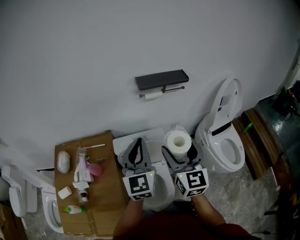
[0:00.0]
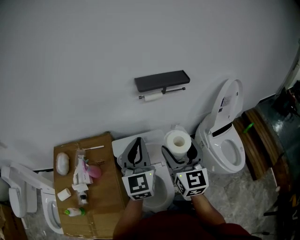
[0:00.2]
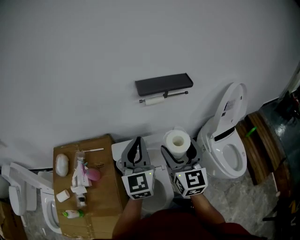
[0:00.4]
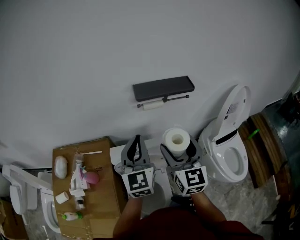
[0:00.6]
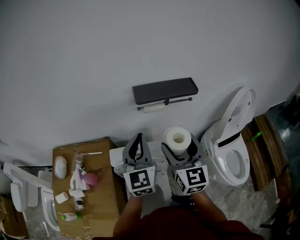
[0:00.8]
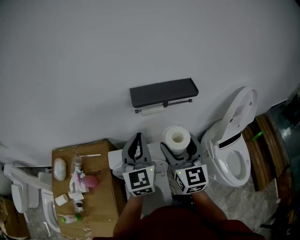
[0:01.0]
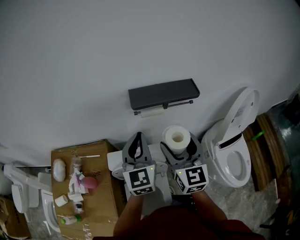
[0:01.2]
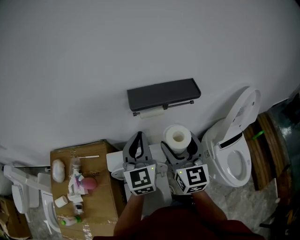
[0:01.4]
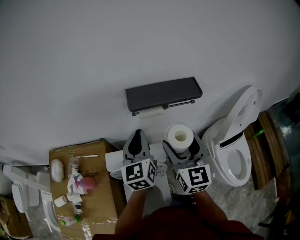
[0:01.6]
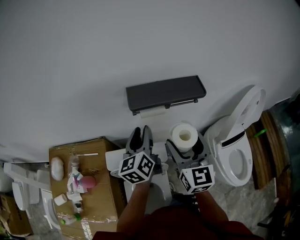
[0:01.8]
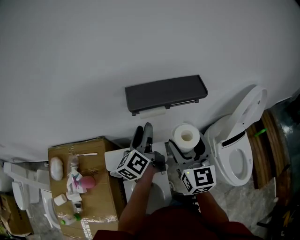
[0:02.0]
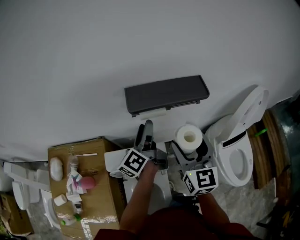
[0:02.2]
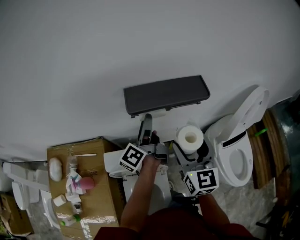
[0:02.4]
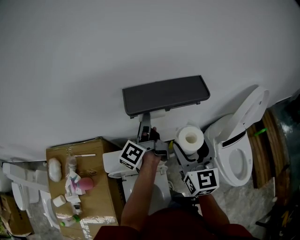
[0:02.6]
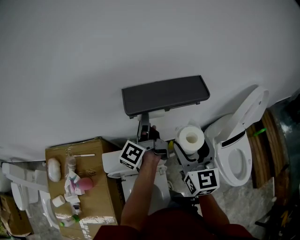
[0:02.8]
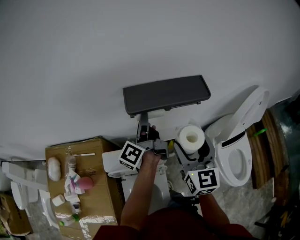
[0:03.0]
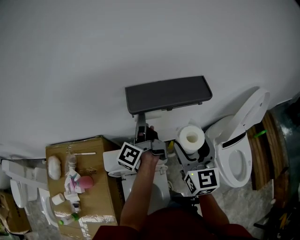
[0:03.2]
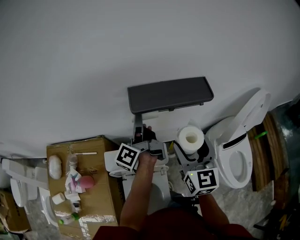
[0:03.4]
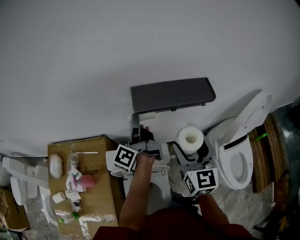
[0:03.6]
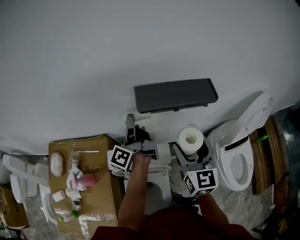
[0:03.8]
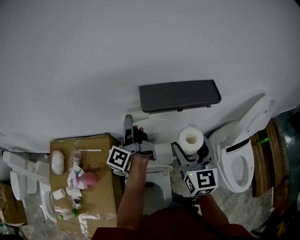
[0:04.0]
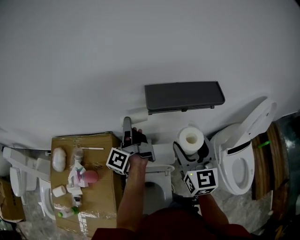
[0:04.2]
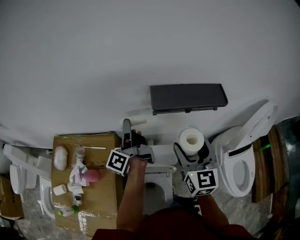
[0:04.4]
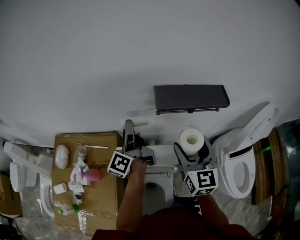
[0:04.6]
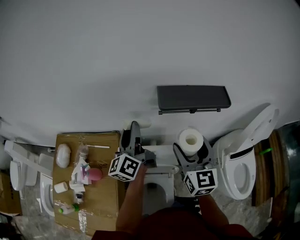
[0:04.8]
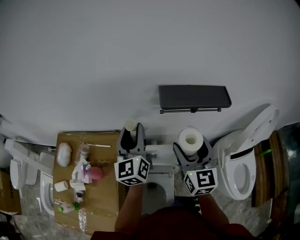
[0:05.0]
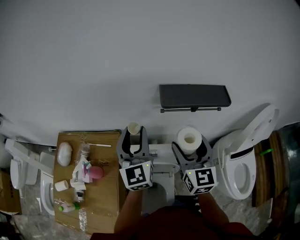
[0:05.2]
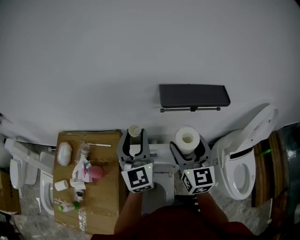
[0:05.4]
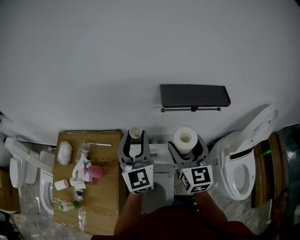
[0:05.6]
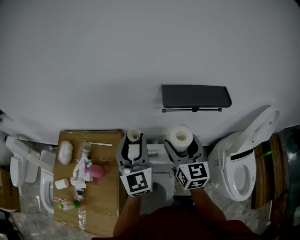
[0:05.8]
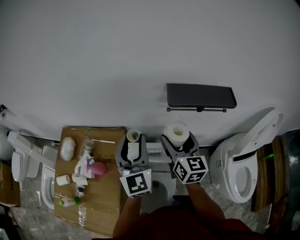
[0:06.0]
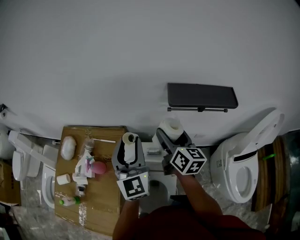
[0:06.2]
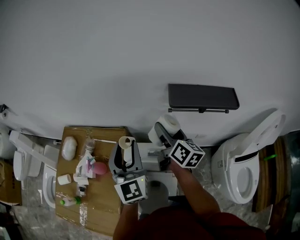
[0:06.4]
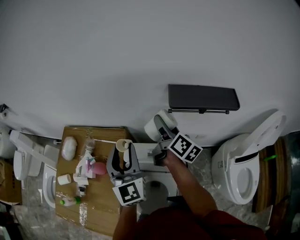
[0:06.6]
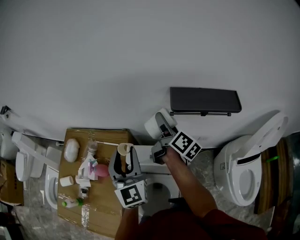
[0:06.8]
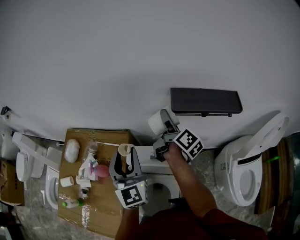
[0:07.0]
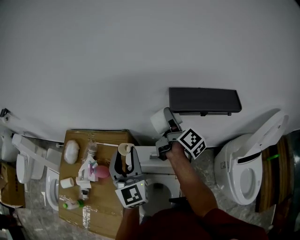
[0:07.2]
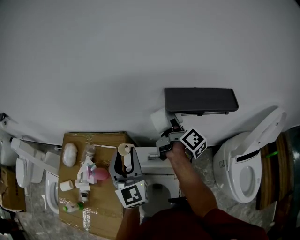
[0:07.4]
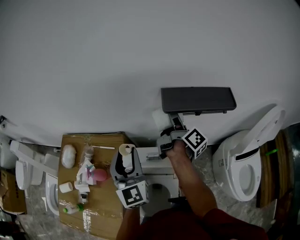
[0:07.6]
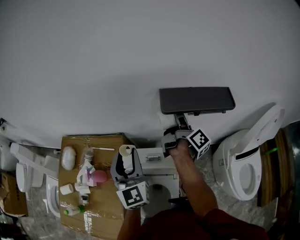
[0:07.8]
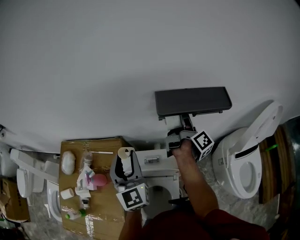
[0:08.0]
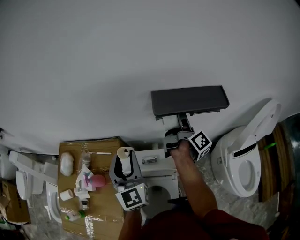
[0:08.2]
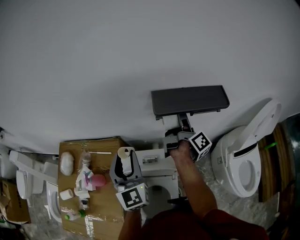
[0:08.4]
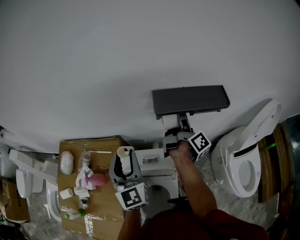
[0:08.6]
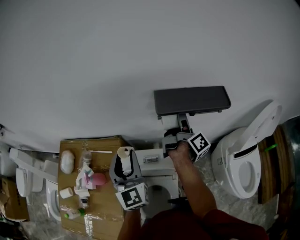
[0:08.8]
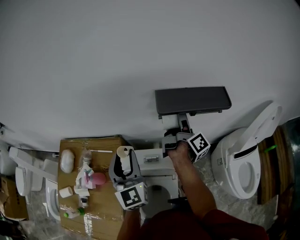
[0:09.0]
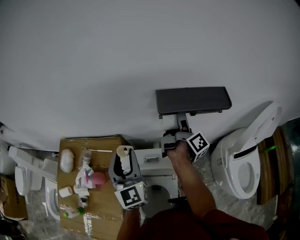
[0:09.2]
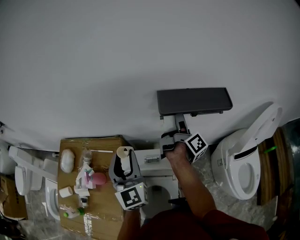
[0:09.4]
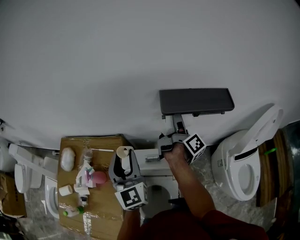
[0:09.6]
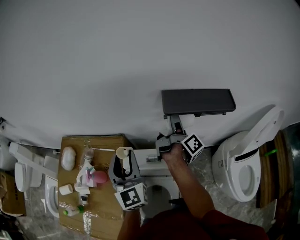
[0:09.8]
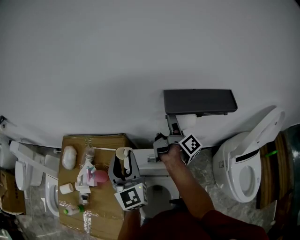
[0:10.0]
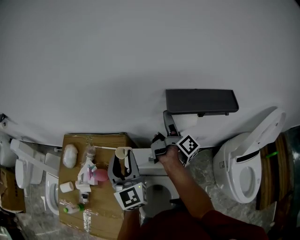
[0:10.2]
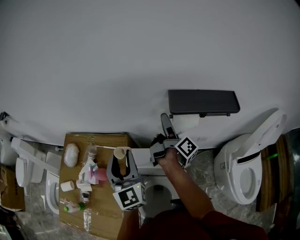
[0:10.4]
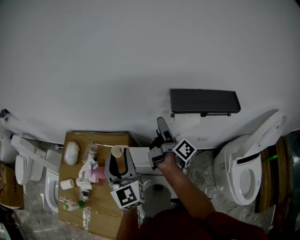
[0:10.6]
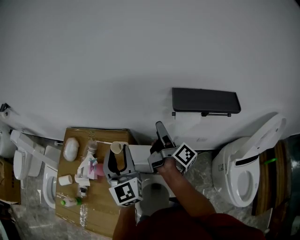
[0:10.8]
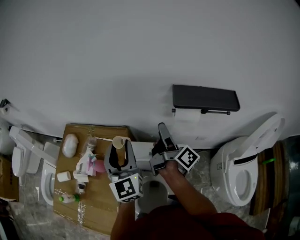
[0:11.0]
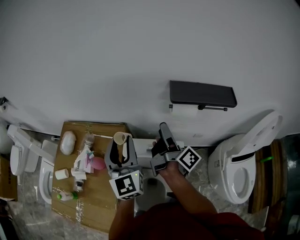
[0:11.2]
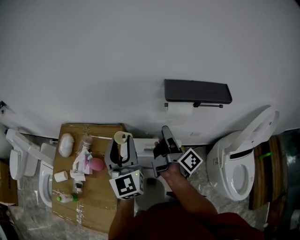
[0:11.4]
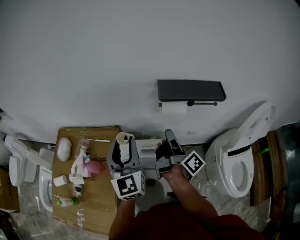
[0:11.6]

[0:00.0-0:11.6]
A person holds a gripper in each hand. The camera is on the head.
0:00.0 to 0:01.4: Both grippers travel together forward, some 20 cm.
0:01.4 to 0:02.8: The left gripper travels forward and downward by approximately 15 cm, rotates around the line of its fingers by roughly 80 degrees, counterclockwise from behind, and opens its fingers. The right gripper moves about 5 cm.
0:02.8 to 0:04.4: The left gripper heads to the left, covering some 15 cm. Meanwhile the right gripper heads to the left, covering about 5 cm.
0:04.4 to 0:05.8: The right gripper travels to the left by about 5 cm; the left gripper heads backward and upward, covering about 10 cm, and rolls clockwise, seen from behind, by roughly 80 degrees.
0:05.8 to 0:07.2: The left gripper shifts about 5 cm to the left. Meanwhile the right gripper heads forward, covering approximately 15 cm, and twists approximately 70 degrees clockwise, seen from behind.
0:07.2 to 0:08.8: The right gripper goes some 10 cm to the right, and changes its angle by approximately 20 degrees.
0:08.8 to 0:10.2: The right gripper goes roughly 10 cm to the left.
0:10.2 to 0:11.6: The left gripper moves approximately 5 cm; the right gripper travels backward by about 15 cm, and closes up.

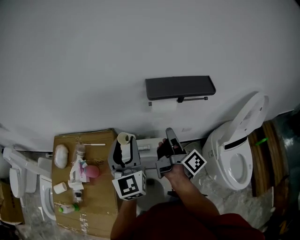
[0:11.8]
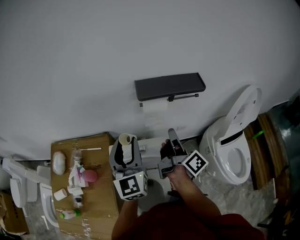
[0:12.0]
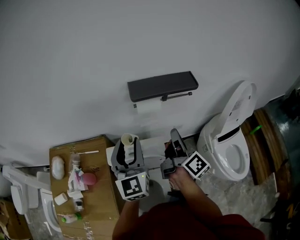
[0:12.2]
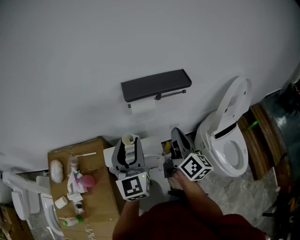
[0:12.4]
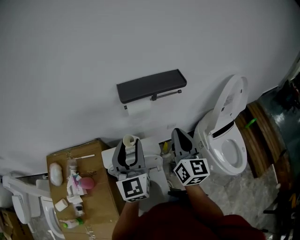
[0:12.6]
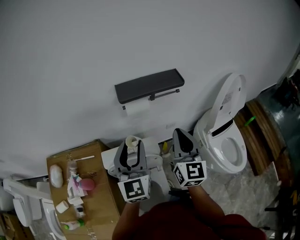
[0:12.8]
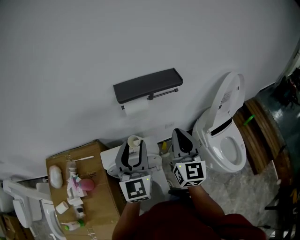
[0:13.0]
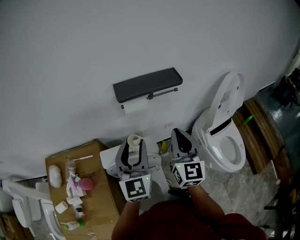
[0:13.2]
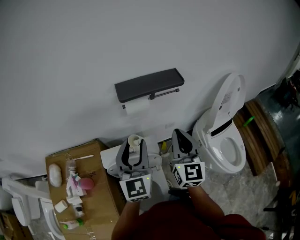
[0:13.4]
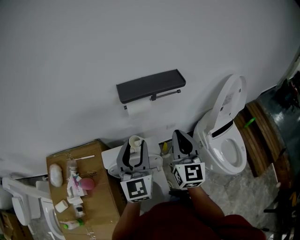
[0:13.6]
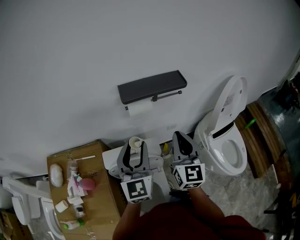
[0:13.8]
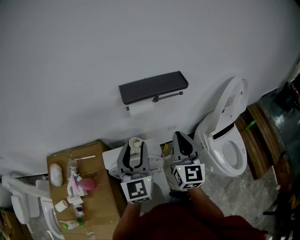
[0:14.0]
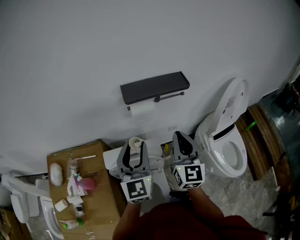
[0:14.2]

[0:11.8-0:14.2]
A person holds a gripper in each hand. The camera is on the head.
0:11.8 to 0:13.0: The left gripper shifts approximately 10 cm to the right. The right gripper is displaced to the right and backward by approximately 10 cm, and rolls counterclockwise, seen from behind, by about 80 degrees.
0:13.0 to 0:14.2: The grippers make only small movements.

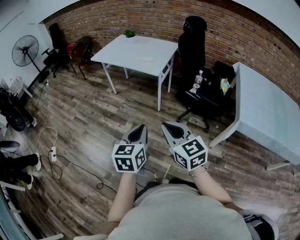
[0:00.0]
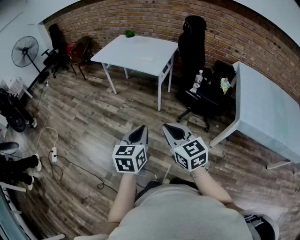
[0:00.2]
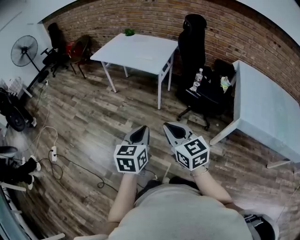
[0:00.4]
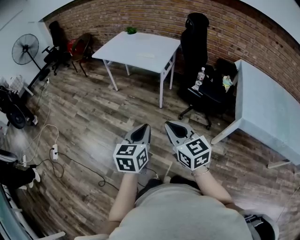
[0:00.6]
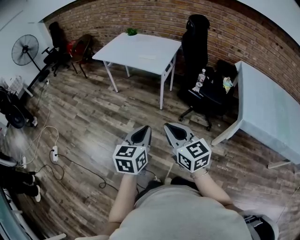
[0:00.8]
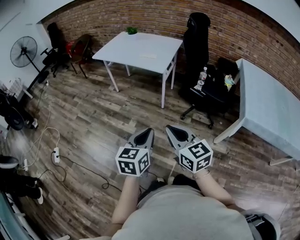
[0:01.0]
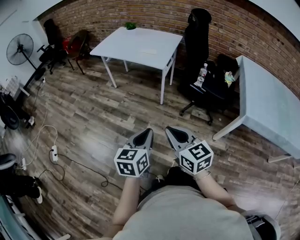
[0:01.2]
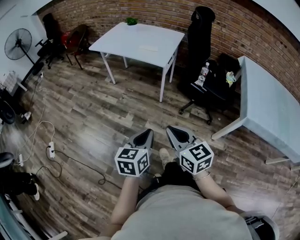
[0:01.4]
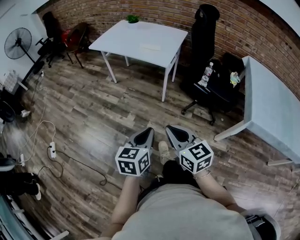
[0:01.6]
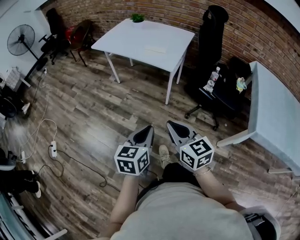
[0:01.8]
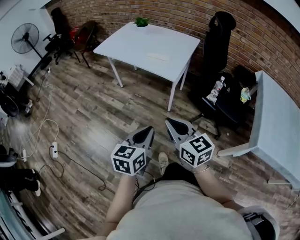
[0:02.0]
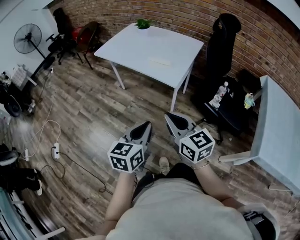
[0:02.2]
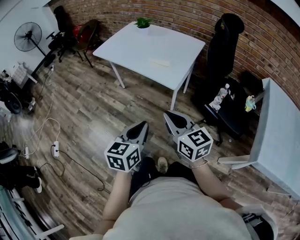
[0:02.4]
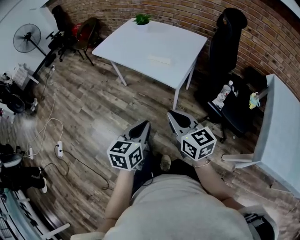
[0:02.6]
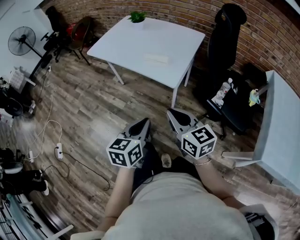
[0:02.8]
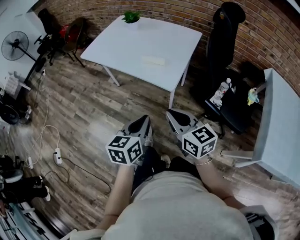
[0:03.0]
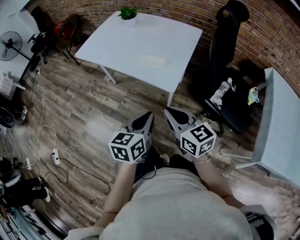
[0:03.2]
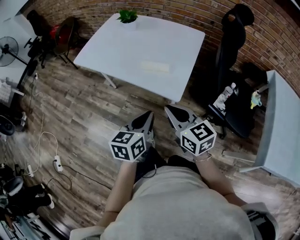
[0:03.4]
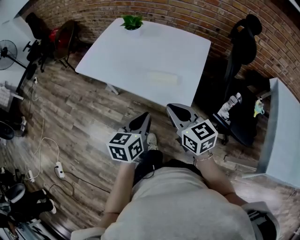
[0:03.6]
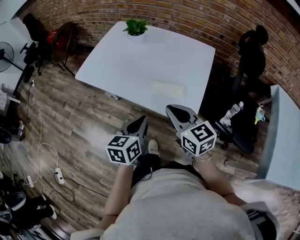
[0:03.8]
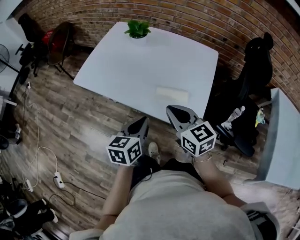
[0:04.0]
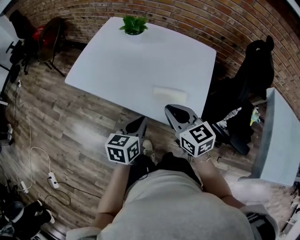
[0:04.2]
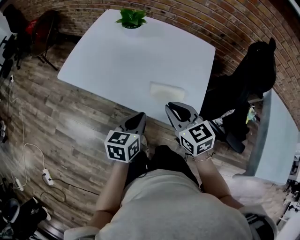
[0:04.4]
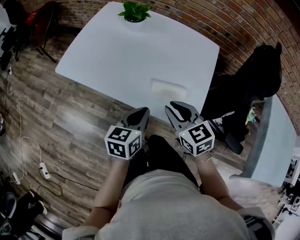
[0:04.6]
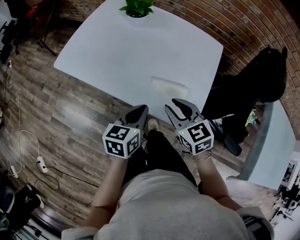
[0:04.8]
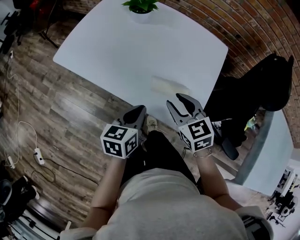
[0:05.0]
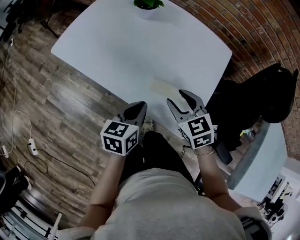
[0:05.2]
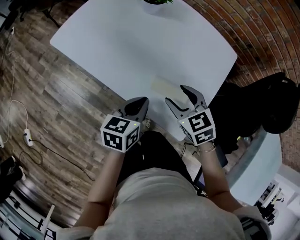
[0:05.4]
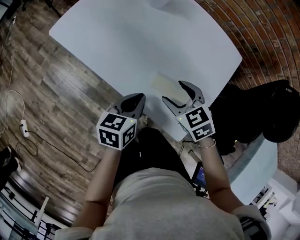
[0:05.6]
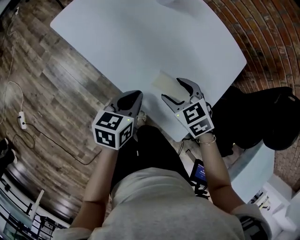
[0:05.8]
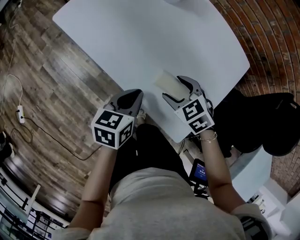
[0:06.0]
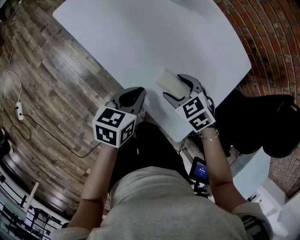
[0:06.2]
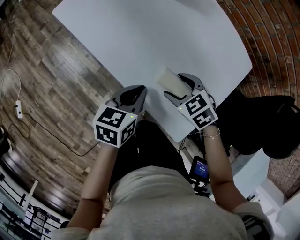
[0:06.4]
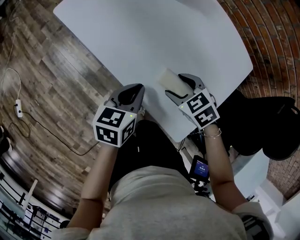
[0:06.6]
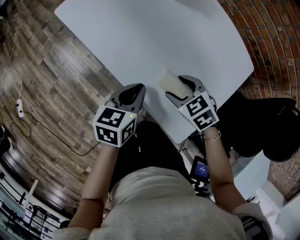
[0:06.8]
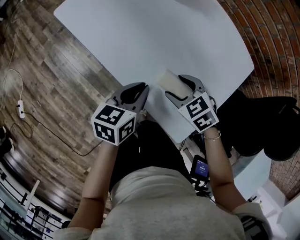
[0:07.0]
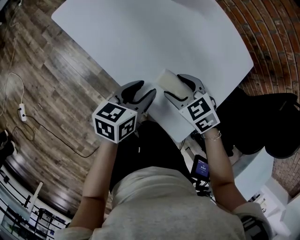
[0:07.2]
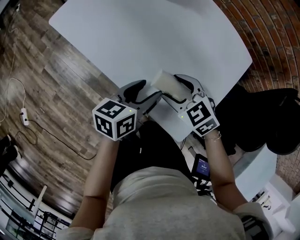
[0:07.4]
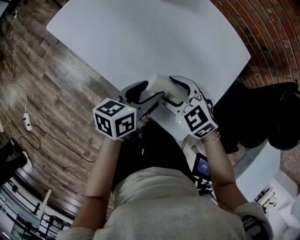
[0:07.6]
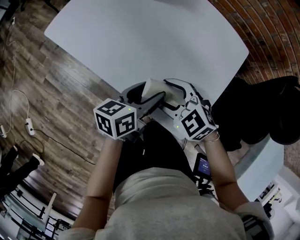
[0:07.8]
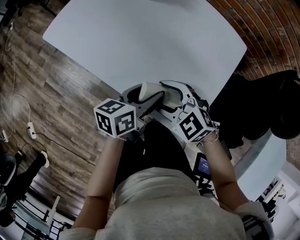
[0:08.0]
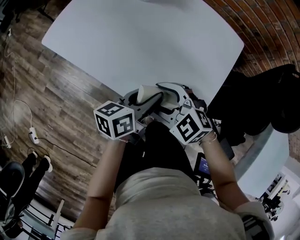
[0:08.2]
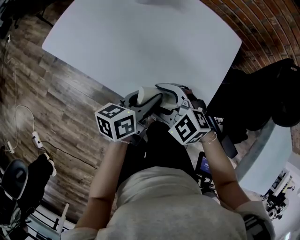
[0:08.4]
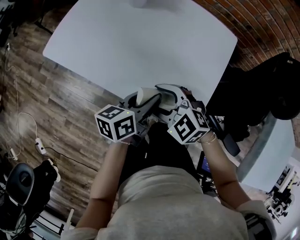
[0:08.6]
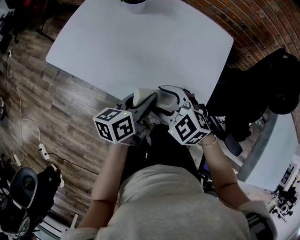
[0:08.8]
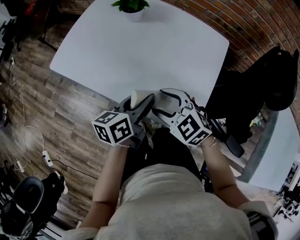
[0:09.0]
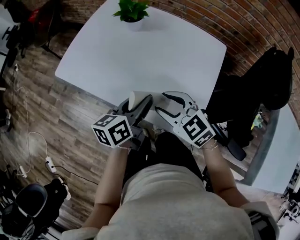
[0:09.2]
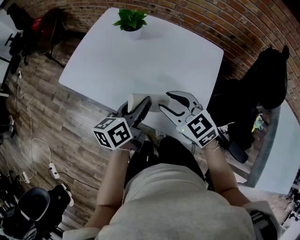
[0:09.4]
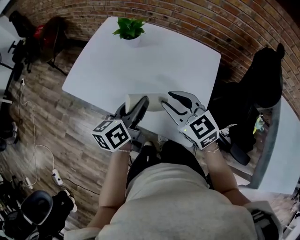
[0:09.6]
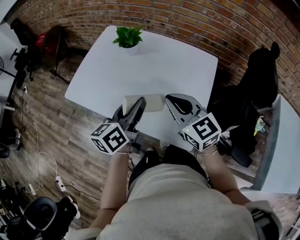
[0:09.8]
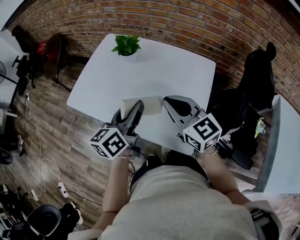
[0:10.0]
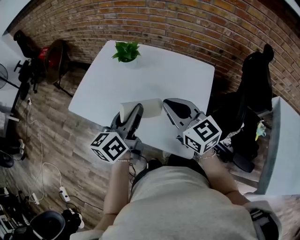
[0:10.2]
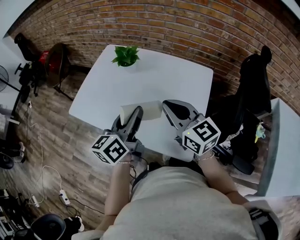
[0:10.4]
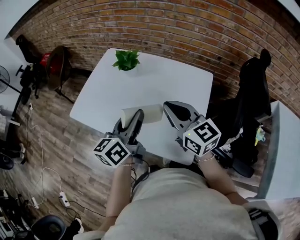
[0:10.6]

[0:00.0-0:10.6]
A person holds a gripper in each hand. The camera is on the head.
0:00.0 to 0:01.6: The right gripper moves forward, downward and to the left, some 10 cm. The left gripper travels downward and forward by about 10 cm.
0:01.6 to 0:03.0: The grippers both shift forward by about 35 cm.
0:03.0 to 0:04.6: The grippers both shift forward by approximately 35 cm. The right gripper rotates some 20 degrees.
0:04.6 to 0:06.0: The right gripper travels downward and forward by roughly 15 cm, turns by roughly 40 degrees, and opens up, while the left gripper is displaced downward and forward by approximately 10 cm.
0:06.0 to 0:07.6: The left gripper moves to the right, some 5 cm, and opens up.
0:07.6 to 0:09.0: The right gripper travels upward by roughly 5 cm, while the left gripper closes up.
0:09.0 to 0:10.6: The left gripper moves upward, some 15 cm, and swivels about 20 degrees. The right gripper heads upward and to the right, covering some 20 cm, tips its fingers upward by about 30 degrees, and closes.
